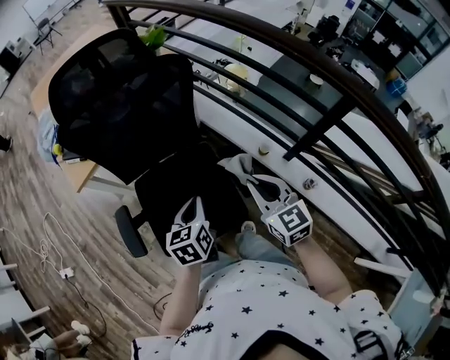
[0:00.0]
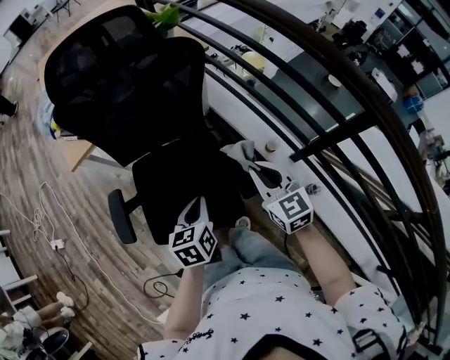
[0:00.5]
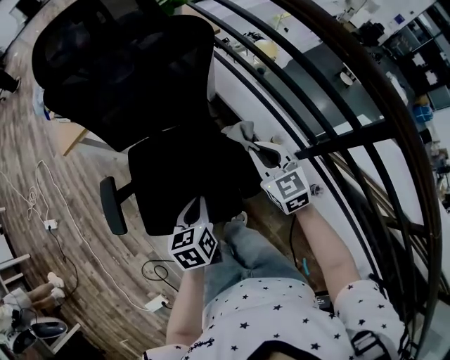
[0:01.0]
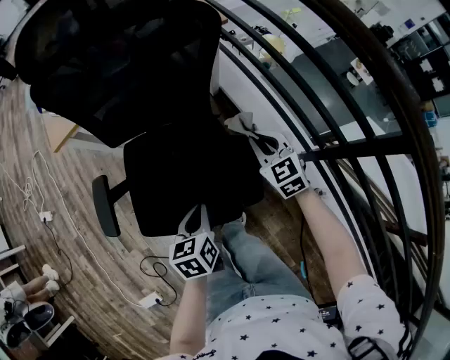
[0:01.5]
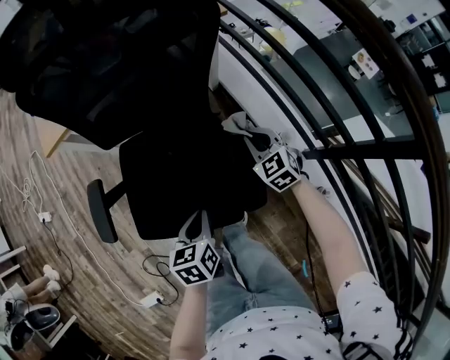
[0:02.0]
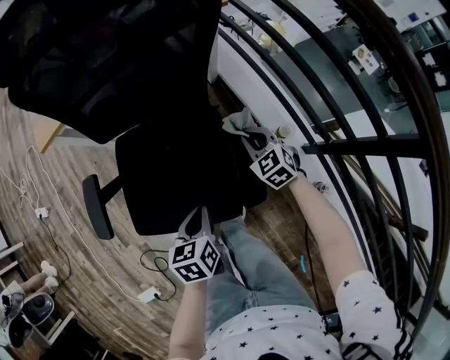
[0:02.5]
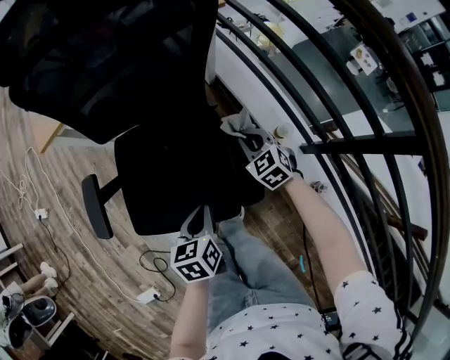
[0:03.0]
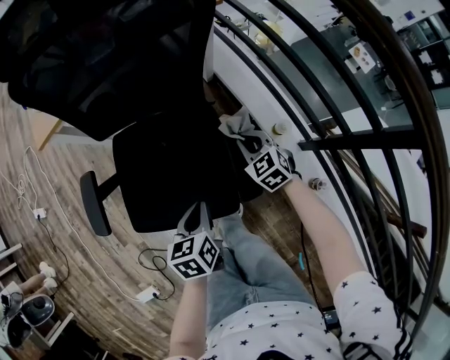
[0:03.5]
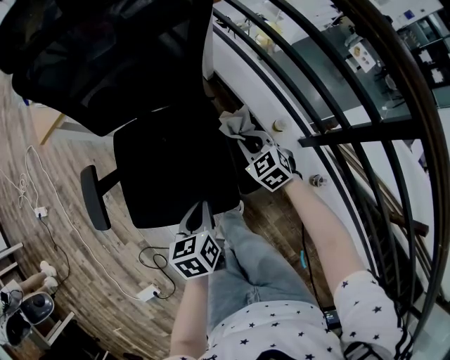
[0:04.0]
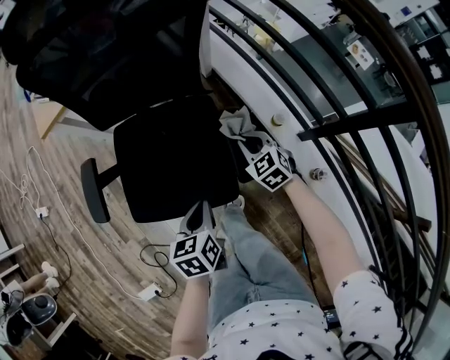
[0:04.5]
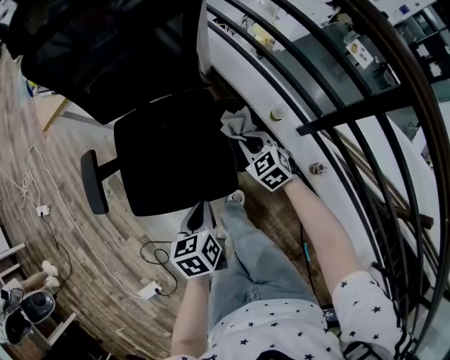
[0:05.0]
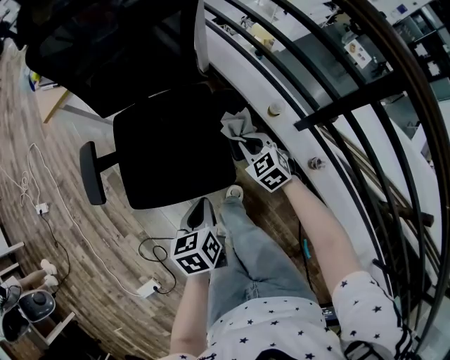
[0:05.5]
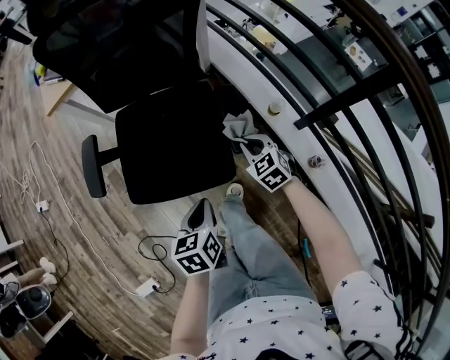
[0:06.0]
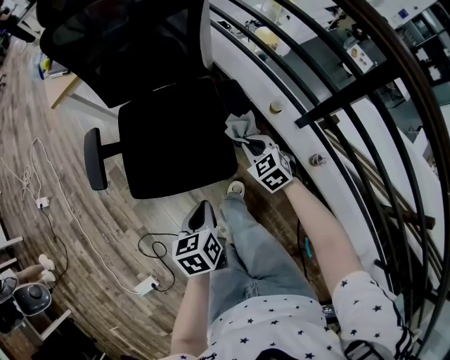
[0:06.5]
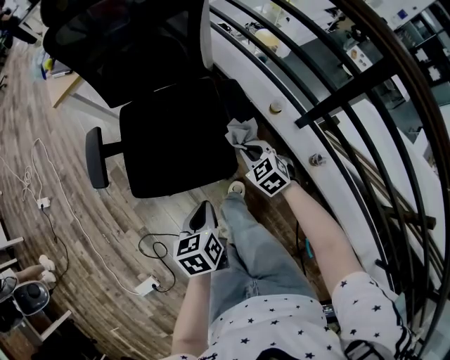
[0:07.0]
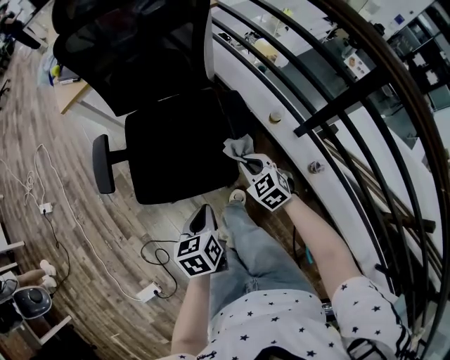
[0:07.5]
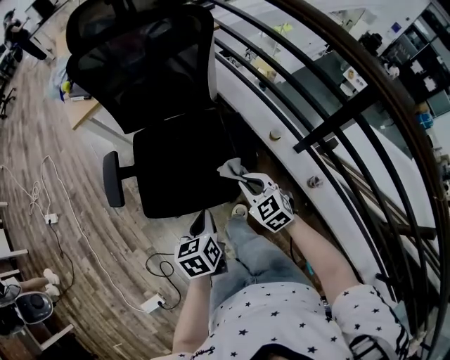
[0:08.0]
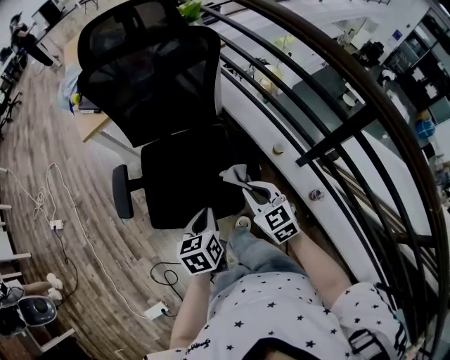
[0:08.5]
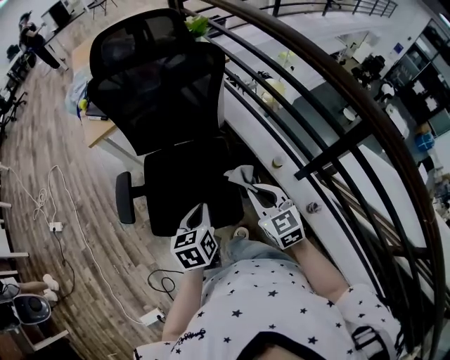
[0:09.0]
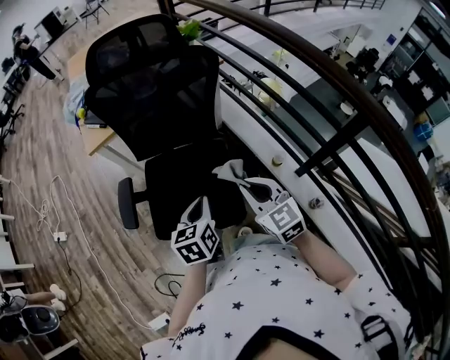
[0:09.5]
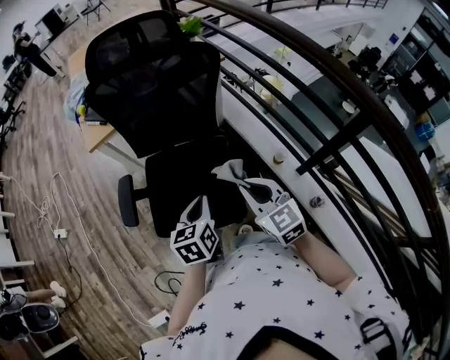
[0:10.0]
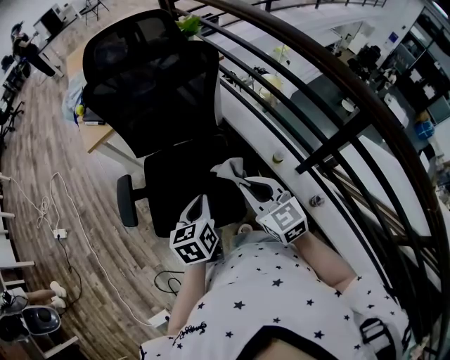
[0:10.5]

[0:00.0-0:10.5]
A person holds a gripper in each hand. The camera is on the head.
0:00.0 to 0:02.0: The left gripper moves downward, roughly 15 cm, and swivels about 20 degrees. Meanwhile the right gripper is displaced downward and forward by approximately 30 cm, and turns by about 30 degrees.
0:02.0 to 0:04.0: The right gripper travels backward by approximately 5 cm.
0:04.0 to 0:06.5: The two grippers go about 15 cm backward.
0:06.5 to 0:08.5: The right gripper travels upward by some 15 cm; the left gripper is displaced upward and forward by about 10 cm.
0:08.5 to 0:10.5: The left gripper is displaced forward and upward by some 10 cm. The right gripper moves upward, about 10 cm.

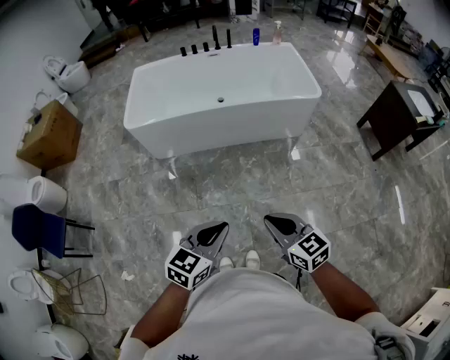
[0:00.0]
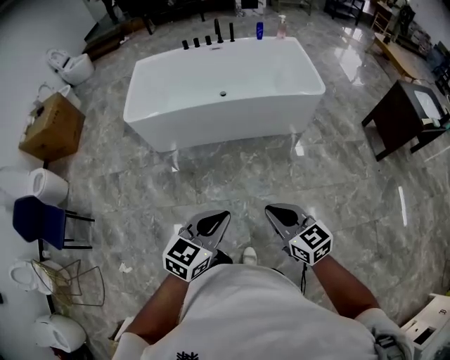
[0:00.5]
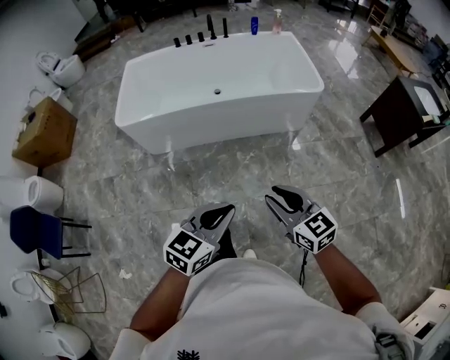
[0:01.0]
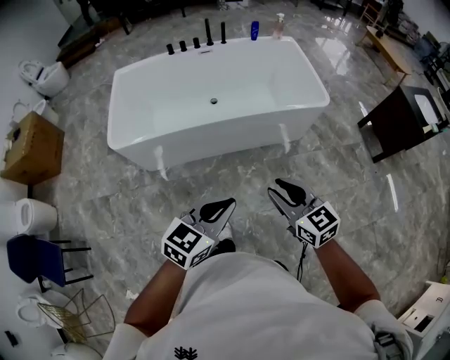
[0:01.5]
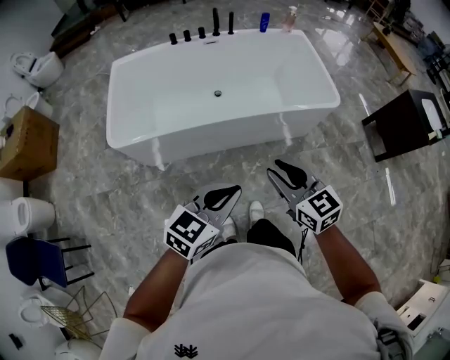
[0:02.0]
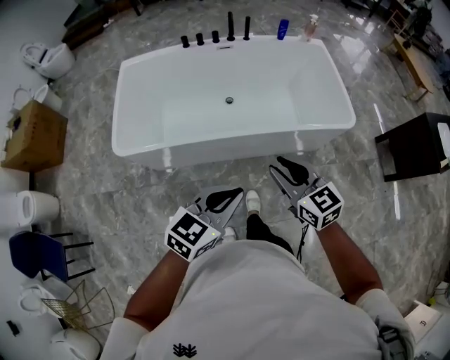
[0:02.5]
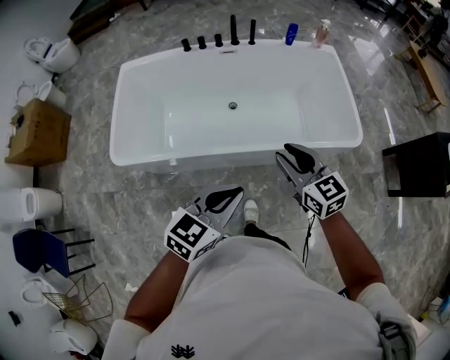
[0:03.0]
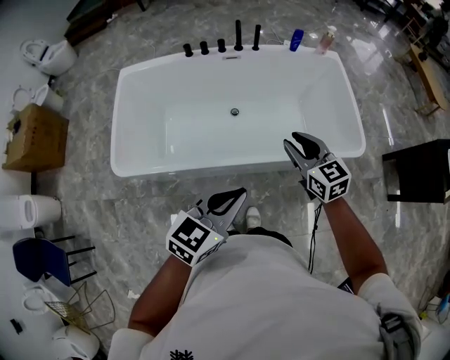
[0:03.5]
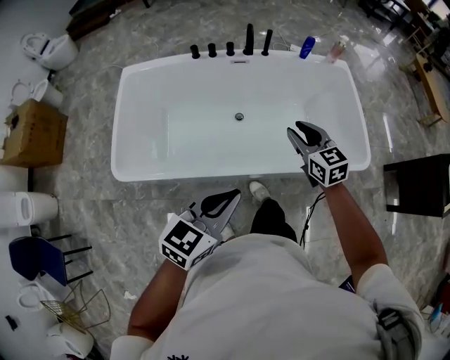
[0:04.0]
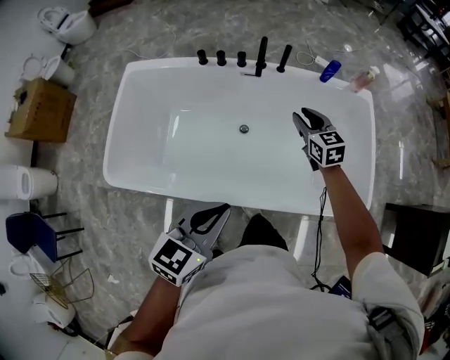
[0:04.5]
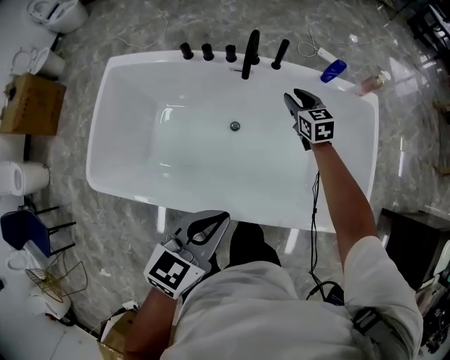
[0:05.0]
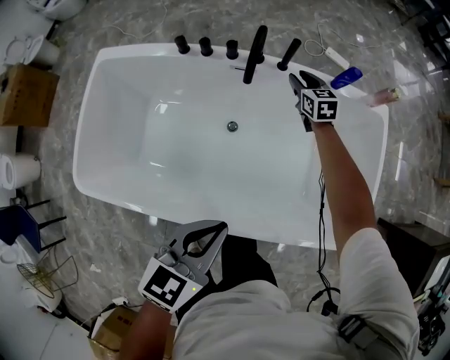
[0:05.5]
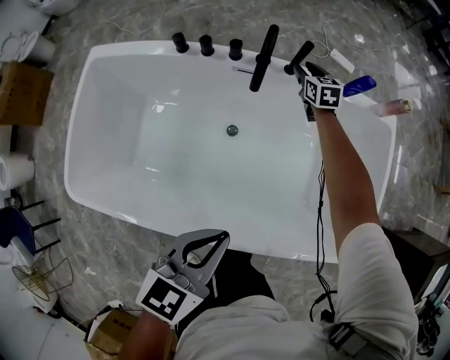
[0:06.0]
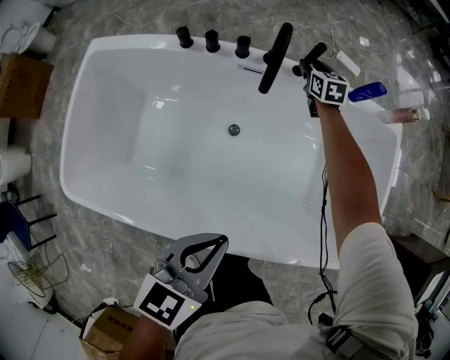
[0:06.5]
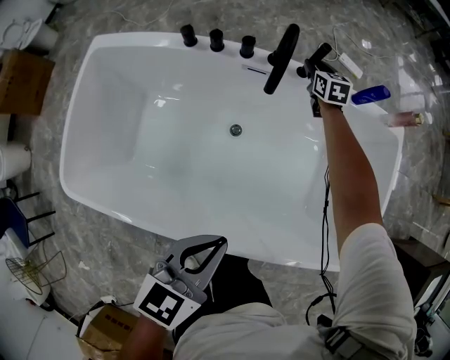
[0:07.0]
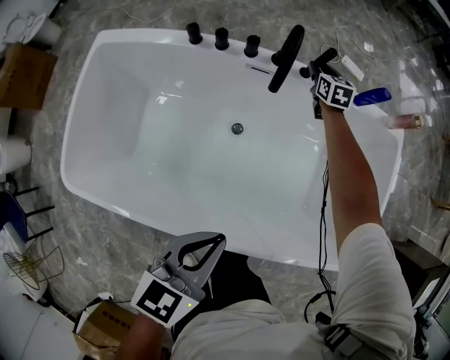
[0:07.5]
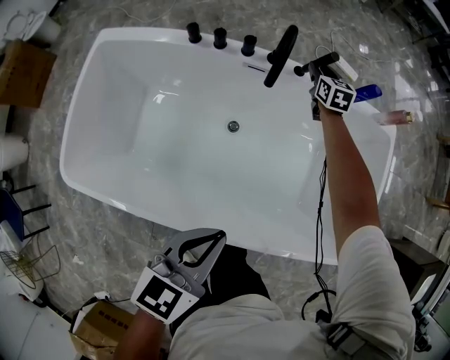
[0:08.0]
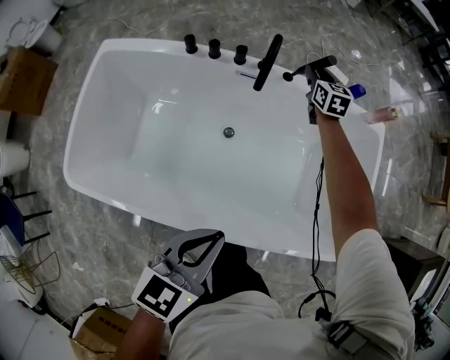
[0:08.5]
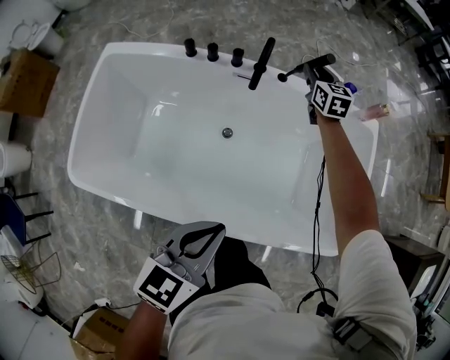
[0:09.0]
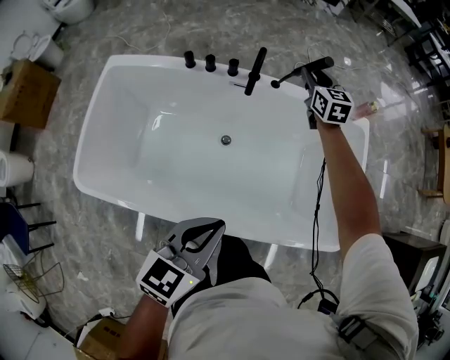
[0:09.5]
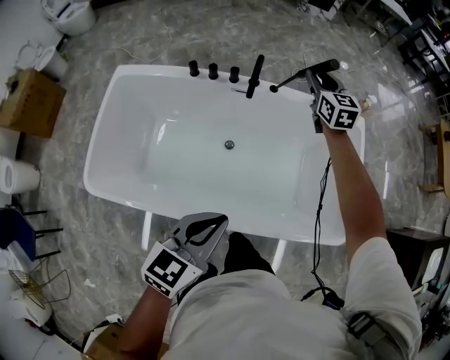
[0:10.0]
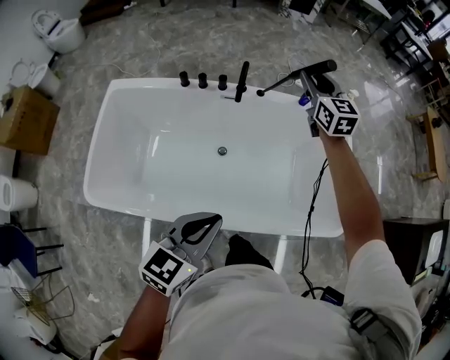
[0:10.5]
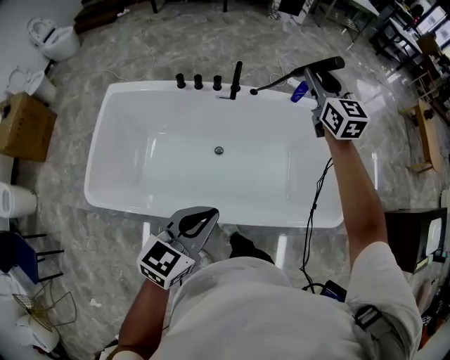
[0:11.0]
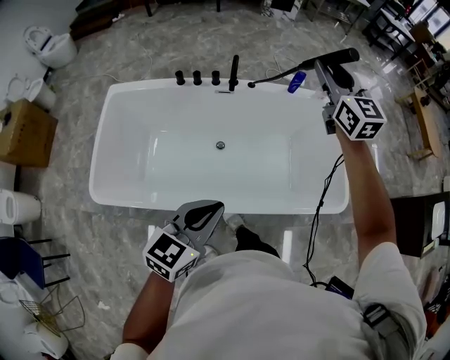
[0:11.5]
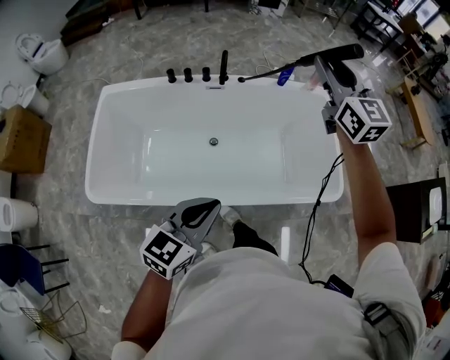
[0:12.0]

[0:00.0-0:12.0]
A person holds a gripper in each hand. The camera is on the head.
0:00.0 to 0:02.0: Both grippers travel together forward, roughly 40 cm. The right gripper opens up.
0:02.0 to 0:04.0: Both grippers move forward, roughly 40 cm.
0:04.0 to 0:06.0: The left gripper heads forward and downward, covering approximately 35 cm. The right gripper travels forward and downward by roughly 70 cm.
0:06.0 to 0:08.0: The grippers move only a little.
0:08.0 to 0:10.0: The right gripper goes about 30 cm upward and backward. The left gripper moves upward and backward, approximately 15 cm.
0:10.0 to 0:12.0: The left gripper shifts roughly 15 cm backward. The right gripper travels backward and upward by about 35 cm.

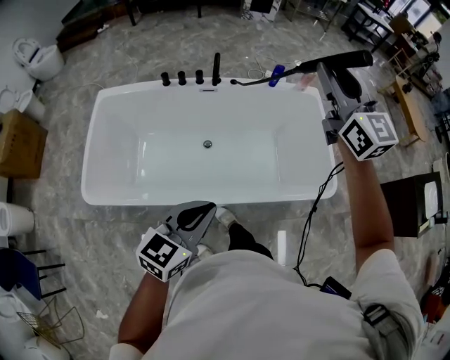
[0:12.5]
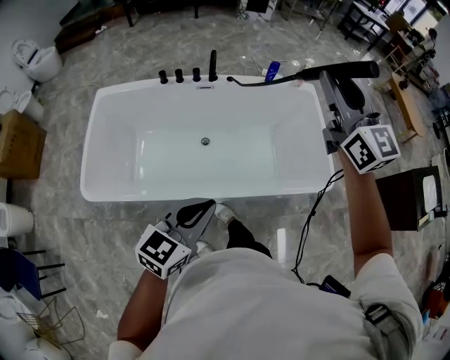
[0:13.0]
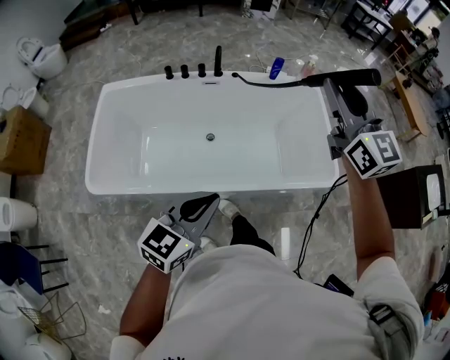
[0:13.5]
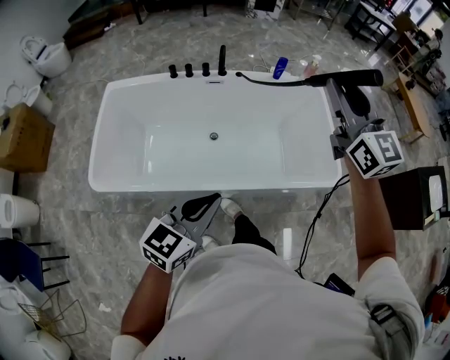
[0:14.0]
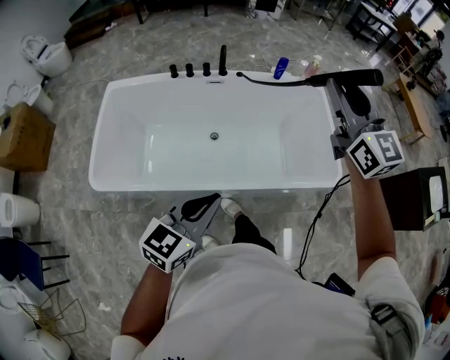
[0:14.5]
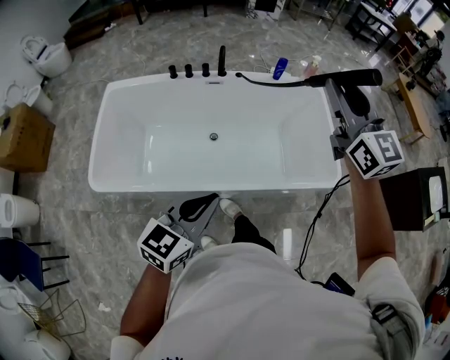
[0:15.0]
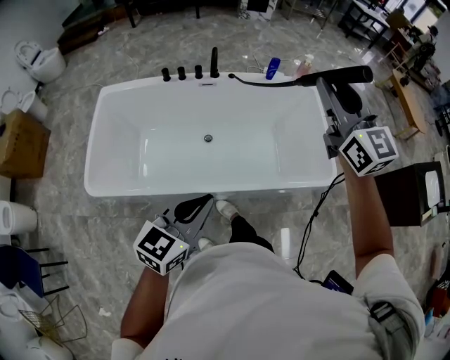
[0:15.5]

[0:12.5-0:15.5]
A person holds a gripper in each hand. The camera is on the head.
0:12.5 to 0:14.0: The right gripper moves backward, roughly 10 cm, while the left gripper goes some 5 cm backward.
0:14.0 to 0:15.5: The two grippers keep their place.

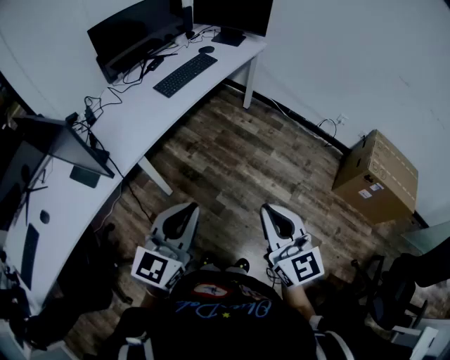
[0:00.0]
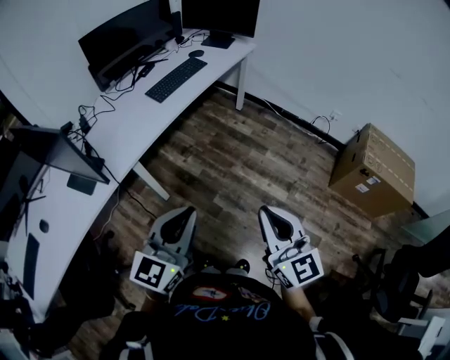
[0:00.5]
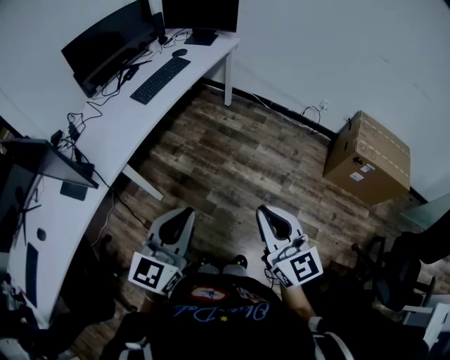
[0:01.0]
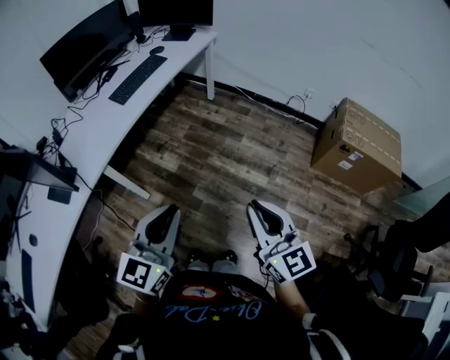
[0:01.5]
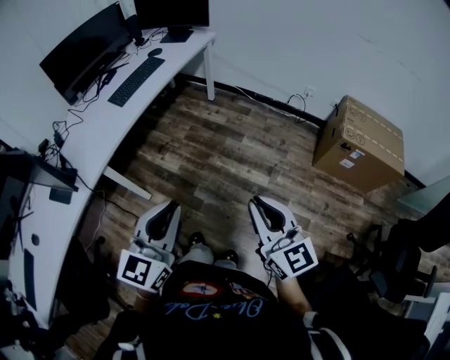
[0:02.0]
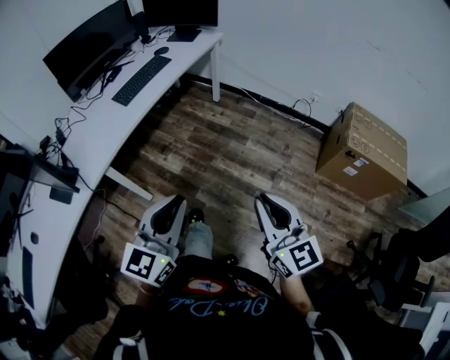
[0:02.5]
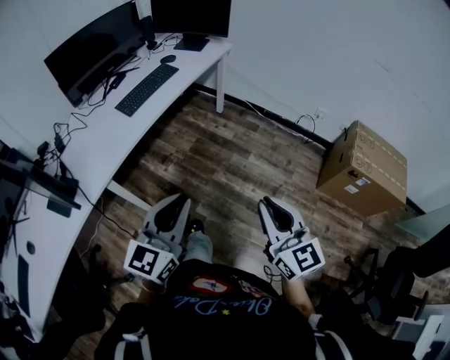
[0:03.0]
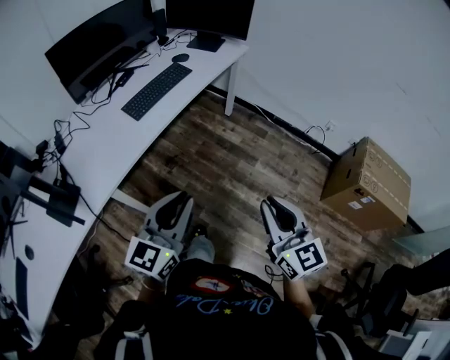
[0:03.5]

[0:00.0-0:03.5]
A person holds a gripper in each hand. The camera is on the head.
0:00.0 to 0:02.0: The grippers both shift to the right by roughly 15 cm.
0:02.0 to 0:03.5: The right gripper travels forward by roughly 20 cm. Meanwhile the left gripper heads forward and to the left, covering about 20 cm.
